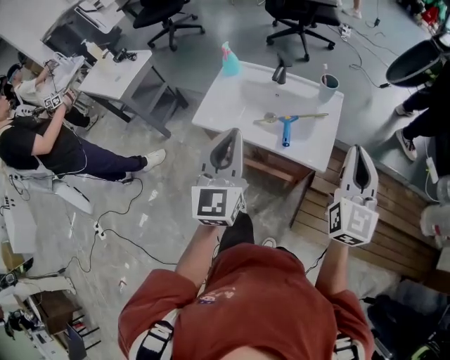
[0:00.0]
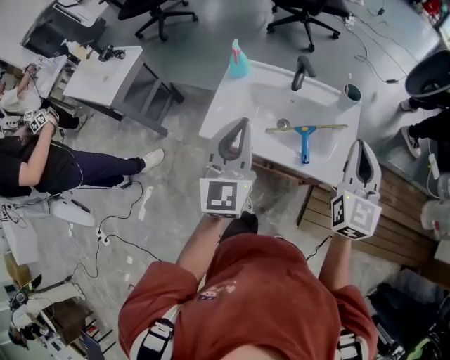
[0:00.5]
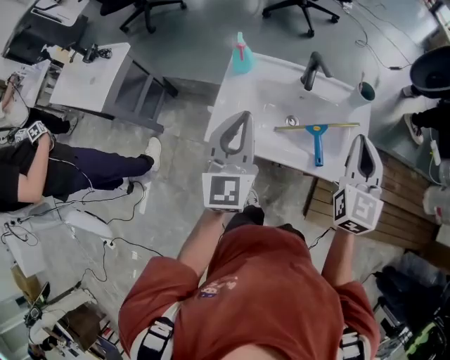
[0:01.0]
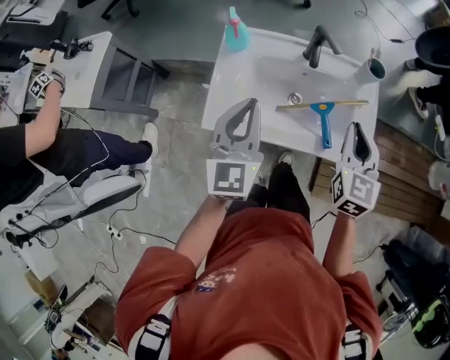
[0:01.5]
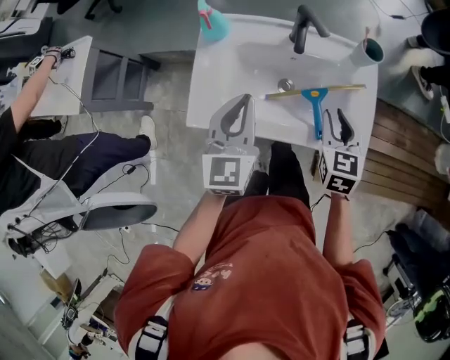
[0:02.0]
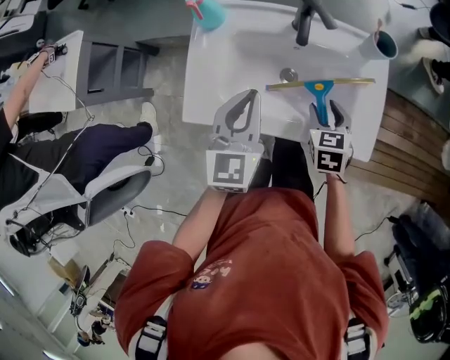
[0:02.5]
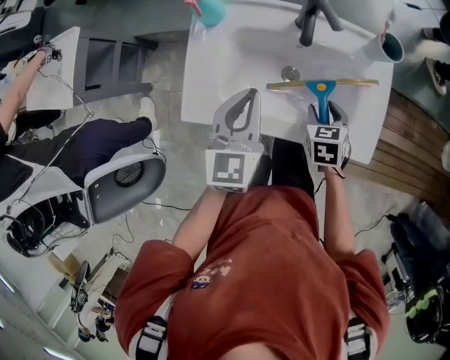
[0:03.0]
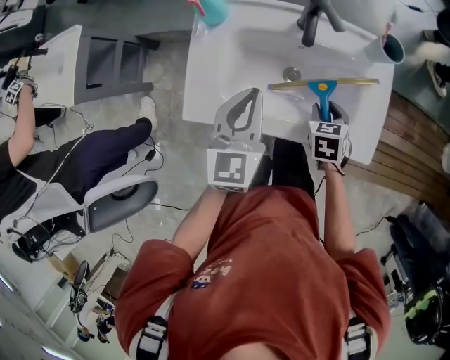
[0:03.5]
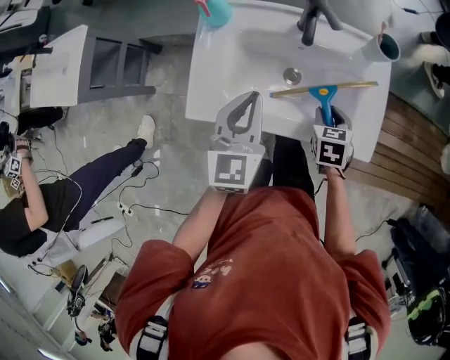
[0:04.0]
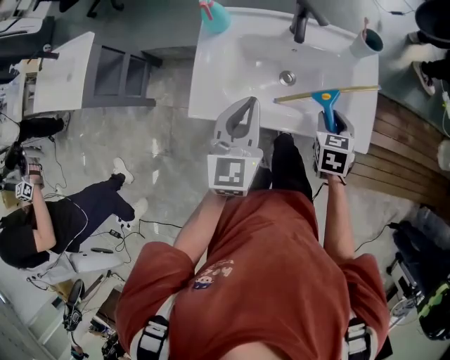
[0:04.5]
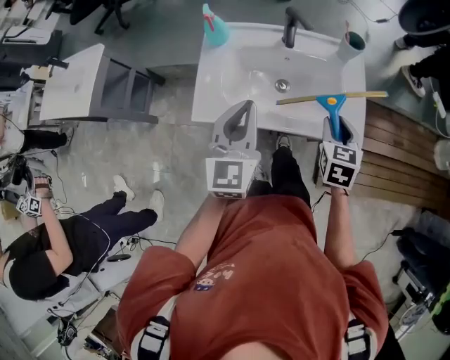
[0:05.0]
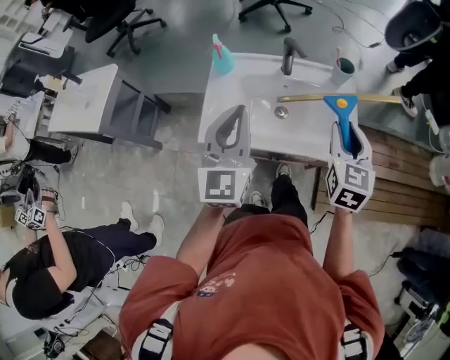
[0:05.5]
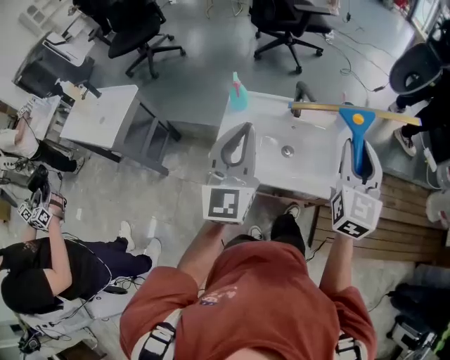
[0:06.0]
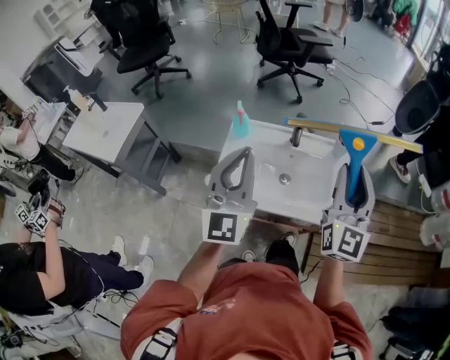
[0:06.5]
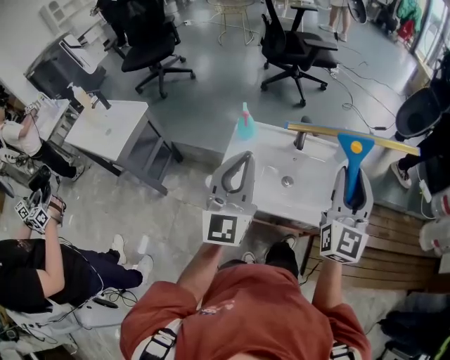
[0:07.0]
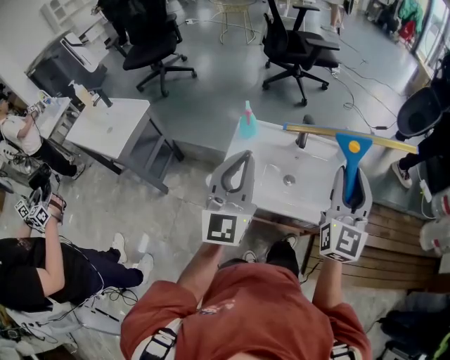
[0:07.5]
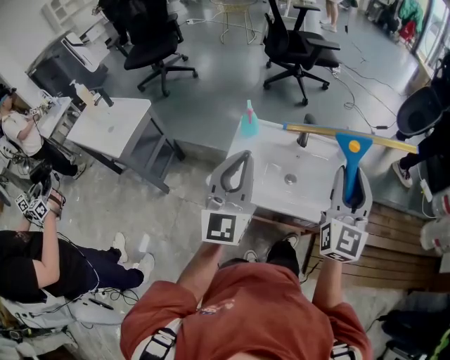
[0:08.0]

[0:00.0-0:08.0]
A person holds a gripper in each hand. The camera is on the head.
0.0 to 2.0 s: The left gripper goes roughly 35 cm forward, downward and to the left, and changes its angle by some 20 degrees. Meanwhile the right gripper shifts some 40 cm downward, forward and to the left, points its fingers about 40 degrees further downward, and opens.
2.0 to 4.0 s: The right gripper moves downward, about 10 cm, and swivels about 20 degrees.
4.0 to 6.0 s: The left gripper goes some 25 cm upward, and tips its fingers upward by about 30 degrees. Meanwhile the right gripper goes about 40 cm upward, and tips its fingers upward by roughly 50 degrees.
6.0 to 8.0 s: The right gripper ends up roughly 5 cm from where it was, while the left gripper changes place by some 5 cm.

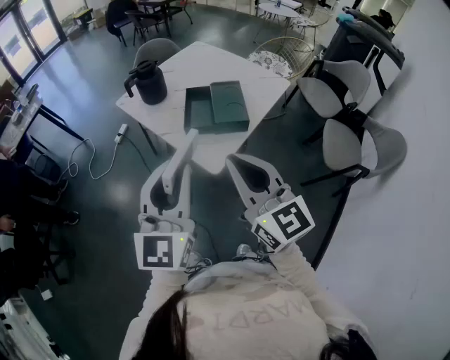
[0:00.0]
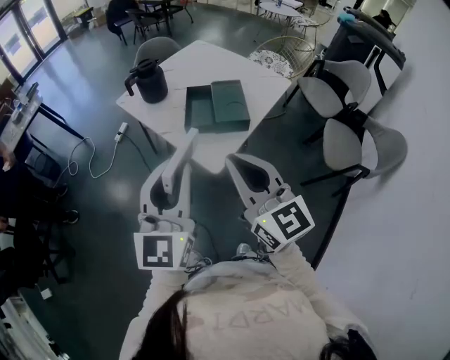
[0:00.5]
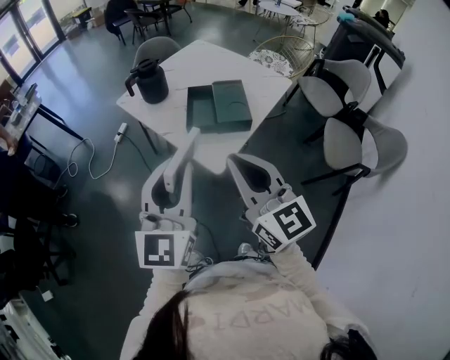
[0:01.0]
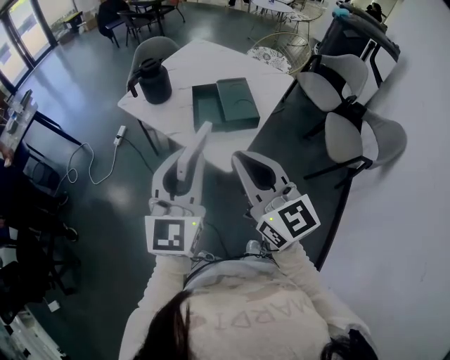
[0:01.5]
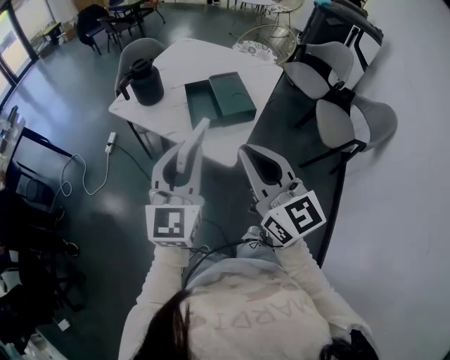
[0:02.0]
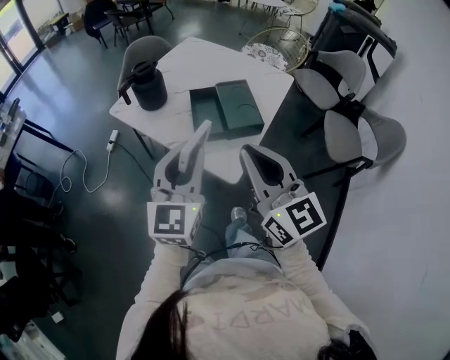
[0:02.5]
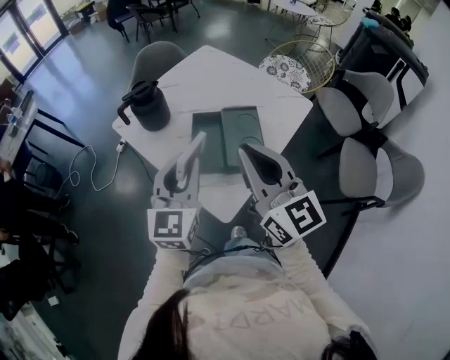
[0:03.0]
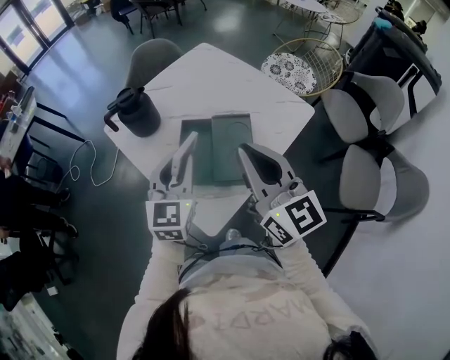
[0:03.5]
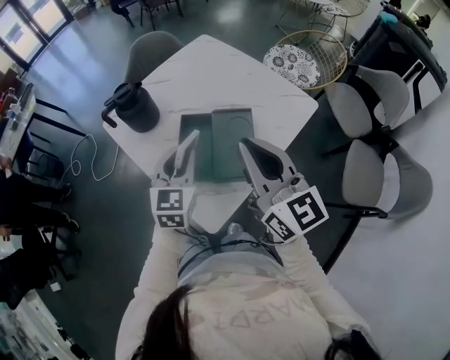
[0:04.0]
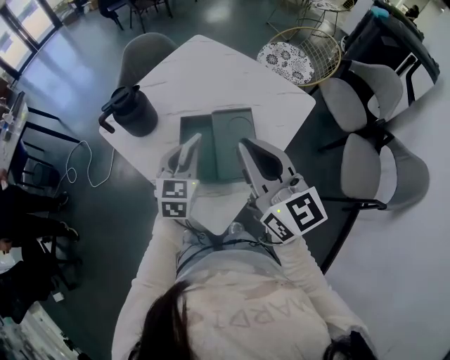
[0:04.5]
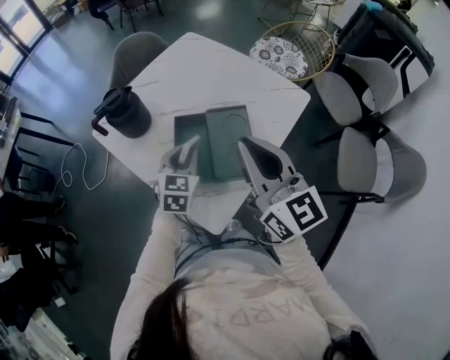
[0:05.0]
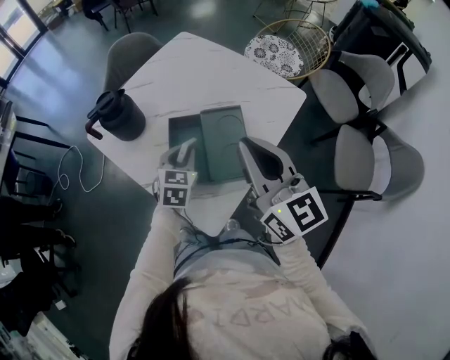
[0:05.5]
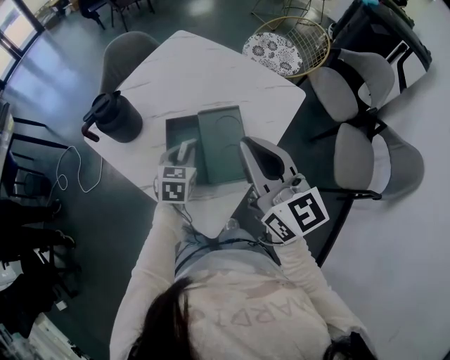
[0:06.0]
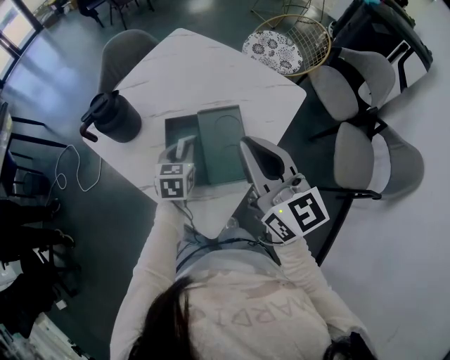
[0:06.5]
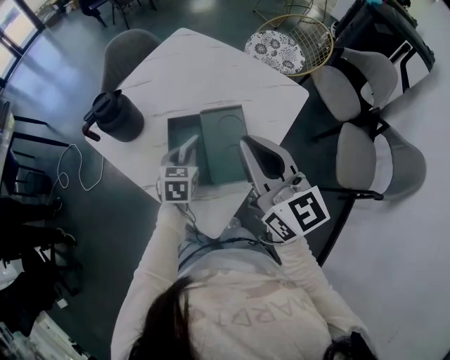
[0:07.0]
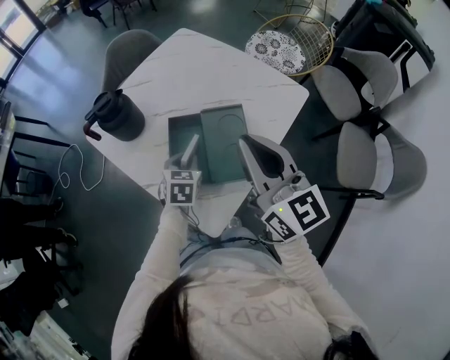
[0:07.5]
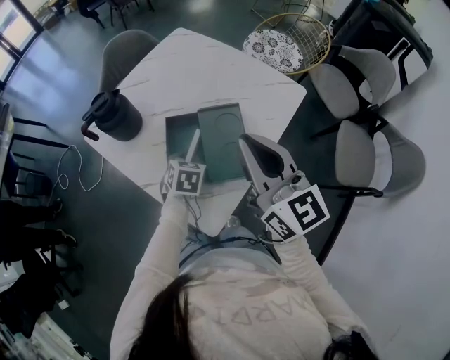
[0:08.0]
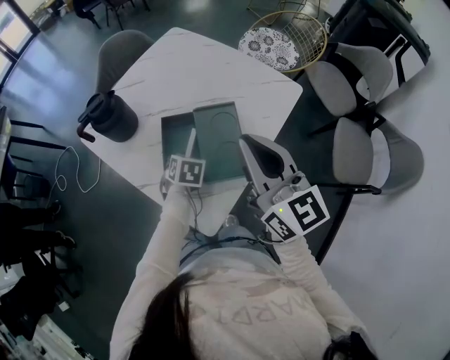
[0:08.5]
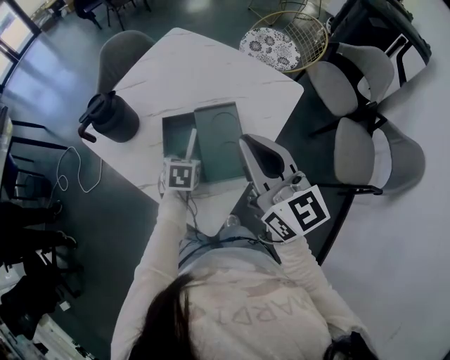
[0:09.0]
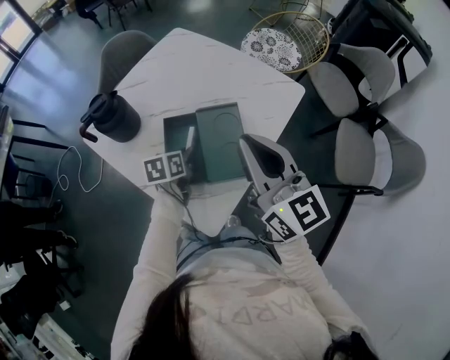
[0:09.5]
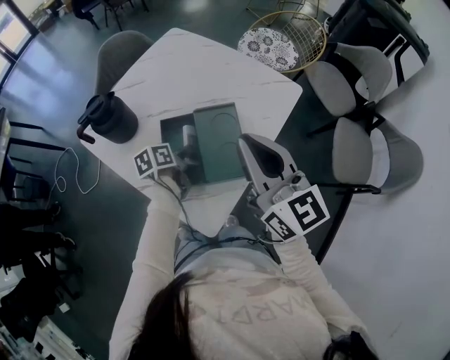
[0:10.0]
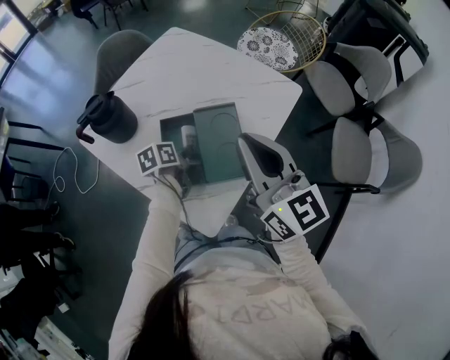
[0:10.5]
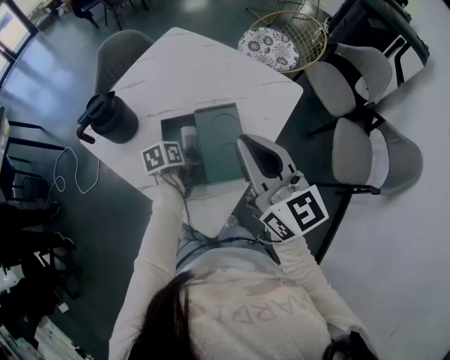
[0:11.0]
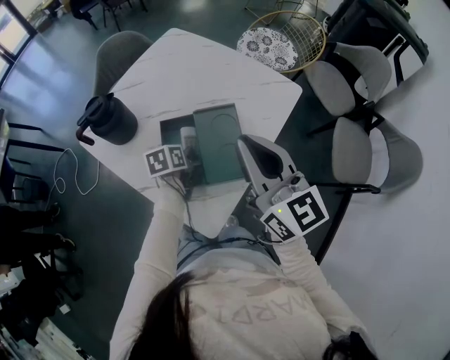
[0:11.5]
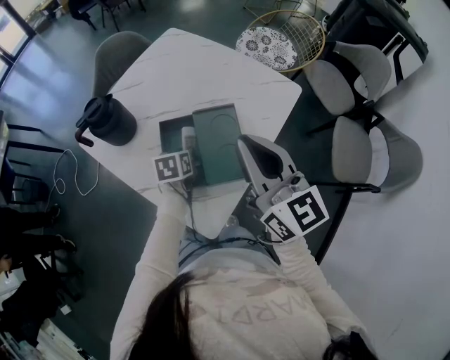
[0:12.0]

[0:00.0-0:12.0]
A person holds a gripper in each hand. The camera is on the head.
0.0 to 2.0 s: The left gripper shifts about 10 cm forward and to the left. Meanwhile the right gripper heads to the left, covering some 5 cm.
2.0 to 4.0 s: The right gripper shifts roughly 35 cm forward and to the right, while the left gripper heads forward, to the right and downward, covering approximately 35 cm, and changes its angle by some 30 degrees.
4.0 to 6.0 s: The left gripper is displaced downward and forward by roughly 15 cm, and rotates about 20 degrees.
6.0 to 8.0 s: The left gripper travels downward by roughly 5 cm.
8.0 to 10.0 s: The left gripper rolls counterclockwise, seen from behind, by about 50 degrees.
10.0 to 12.0 s: The left gripper swivels some 30 degrees.

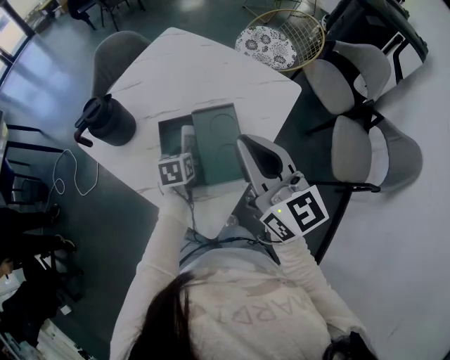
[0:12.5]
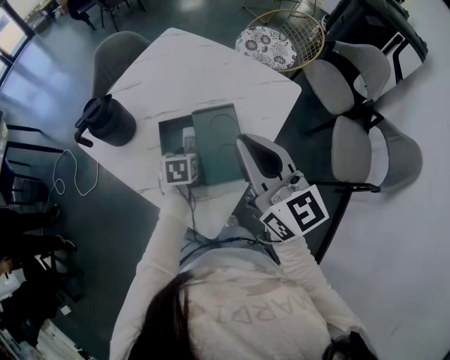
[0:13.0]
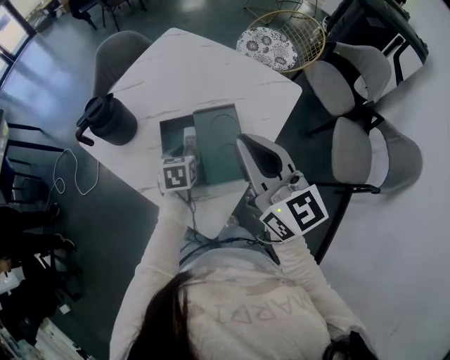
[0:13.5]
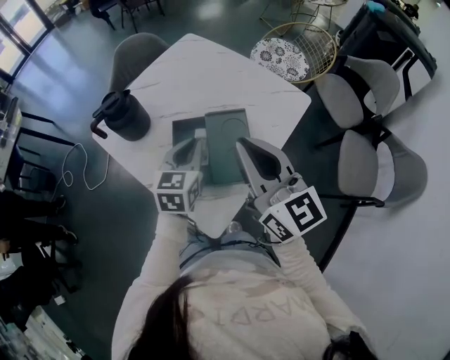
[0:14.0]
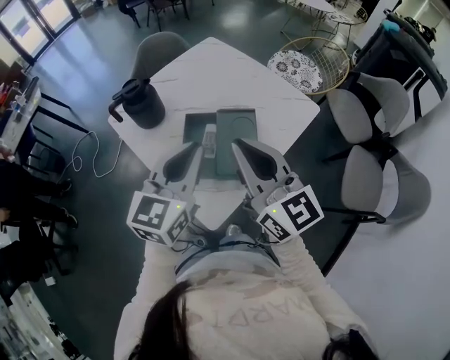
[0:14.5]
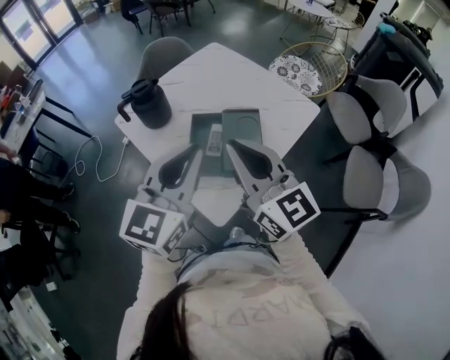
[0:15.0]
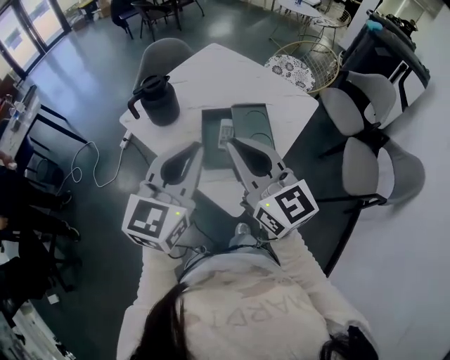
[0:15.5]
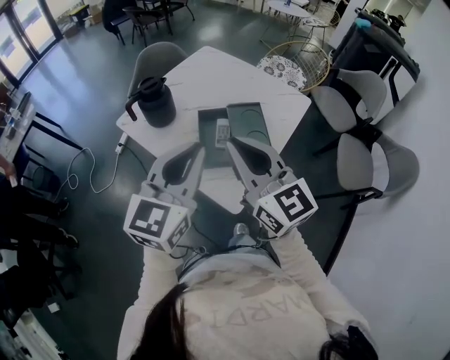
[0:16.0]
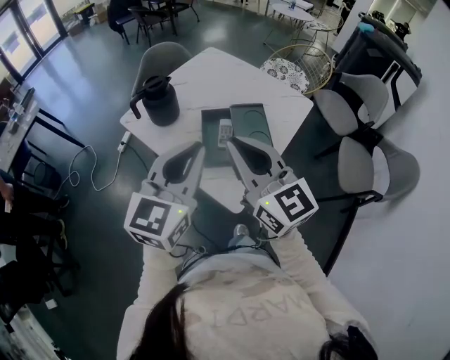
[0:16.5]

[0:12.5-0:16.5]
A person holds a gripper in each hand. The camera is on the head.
12.5 to 14.5 s: The right gripper travels backward by about 5 cm. Meanwhile the left gripper travels upward and backward by some 30 cm, and tilts its fingers approximately 40 degrees upward.
14.5 to 16.5 s: The left gripper moves to the left, backward and upward, roughly 15 cm; the right gripper shifts approximately 15 cm to the left and backward.

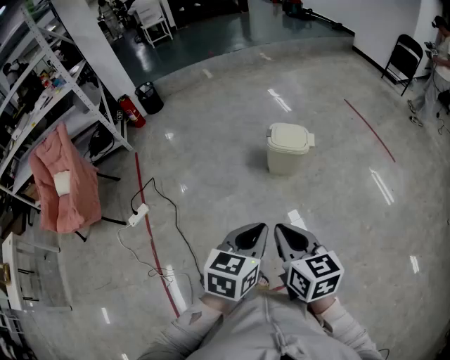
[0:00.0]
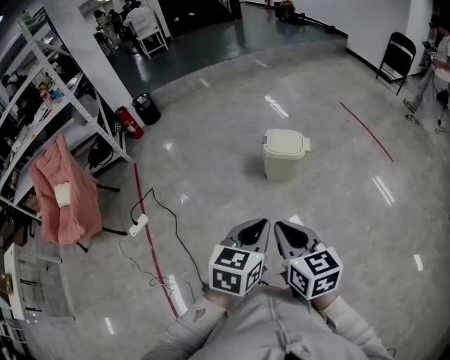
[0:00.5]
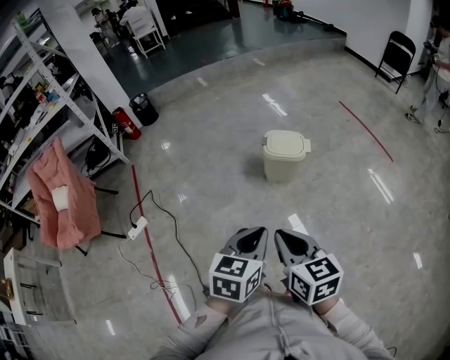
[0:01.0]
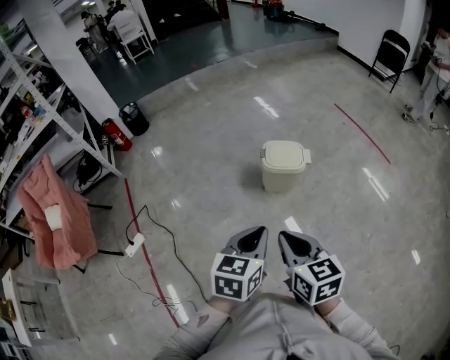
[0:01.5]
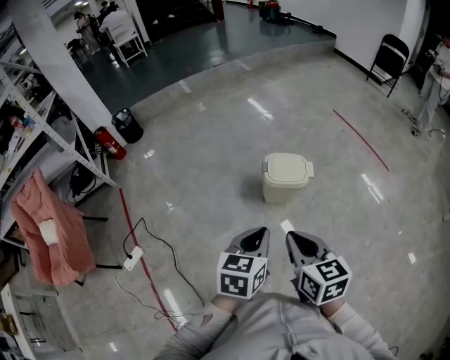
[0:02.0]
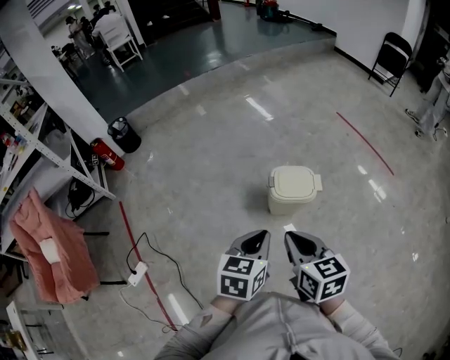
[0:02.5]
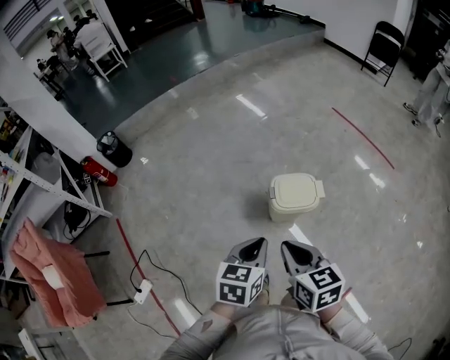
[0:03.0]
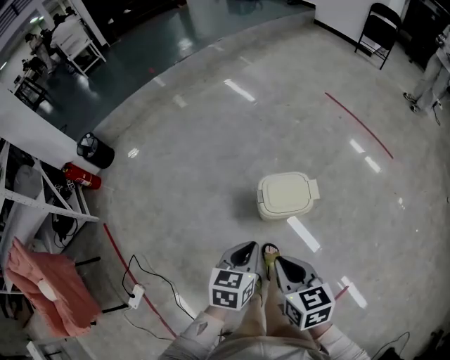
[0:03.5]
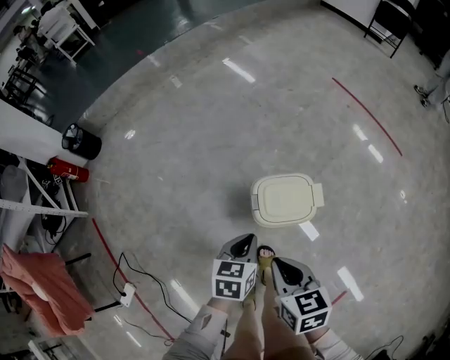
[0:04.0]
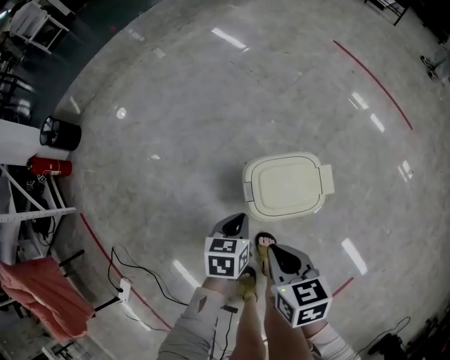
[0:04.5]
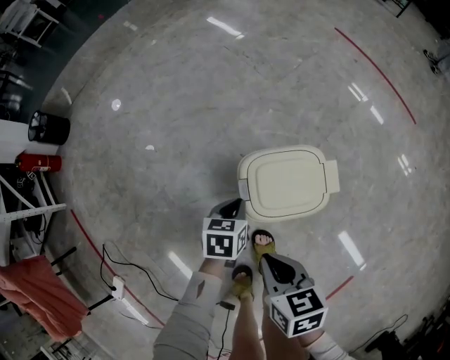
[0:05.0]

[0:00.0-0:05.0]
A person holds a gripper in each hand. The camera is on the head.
0.0 to 2.5 s: The grippers both shift forward by some 30 cm.
2.5 to 5.0 s: Both grippers travel together downward and forward, some 50 cm. The left gripper rotates some 30 degrees, while the right gripper changes its angle by roughly 30 degrees.
